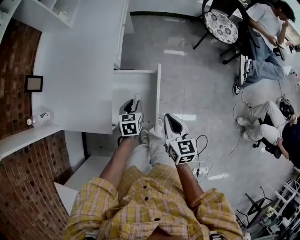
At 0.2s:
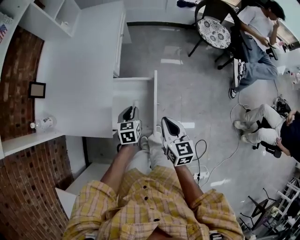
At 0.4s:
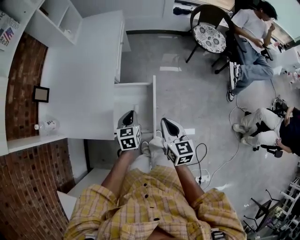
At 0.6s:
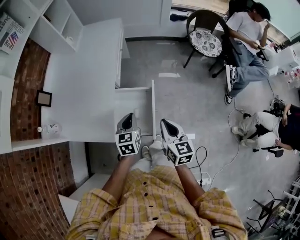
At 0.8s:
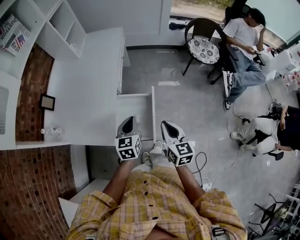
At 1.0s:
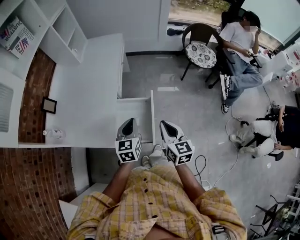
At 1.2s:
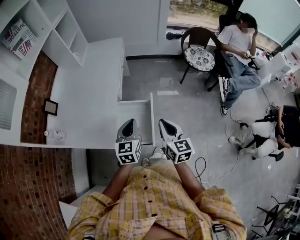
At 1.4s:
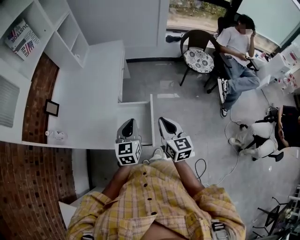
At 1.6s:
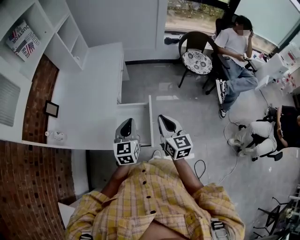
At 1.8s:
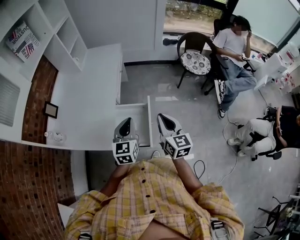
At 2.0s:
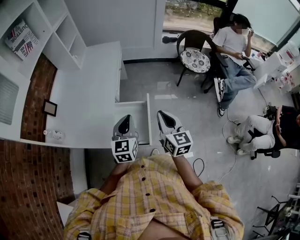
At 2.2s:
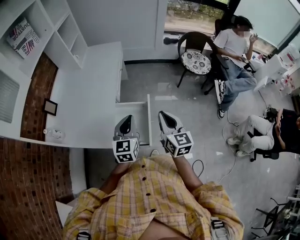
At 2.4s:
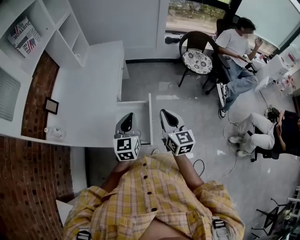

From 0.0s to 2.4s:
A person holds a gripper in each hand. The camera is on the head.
From 0.0s to 1.2s: The left gripper heads upward, covering roughly 25 cm, changes its angle by some 30 degrees, and closes up. The right gripper travels upward by about 15 cm.
From 1.2s to 2.4s: The left gripper travels upward by about 5 cm. Meanwhile the right gripper ends up about 5 cm from where it was.

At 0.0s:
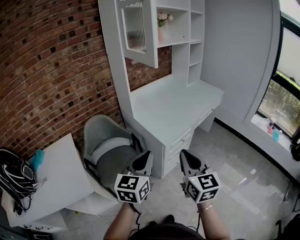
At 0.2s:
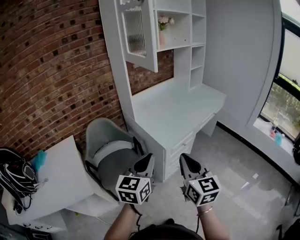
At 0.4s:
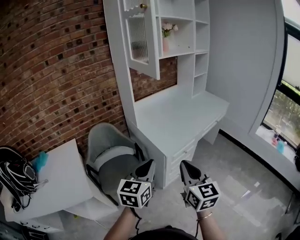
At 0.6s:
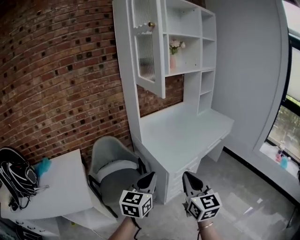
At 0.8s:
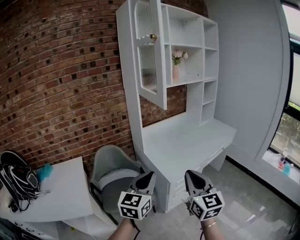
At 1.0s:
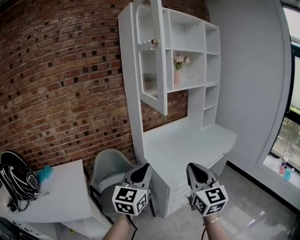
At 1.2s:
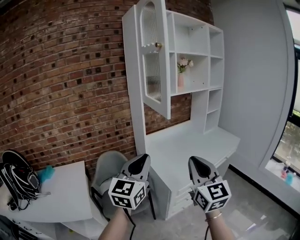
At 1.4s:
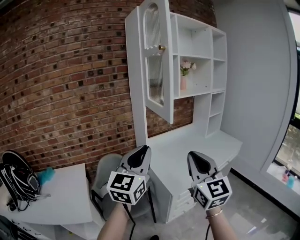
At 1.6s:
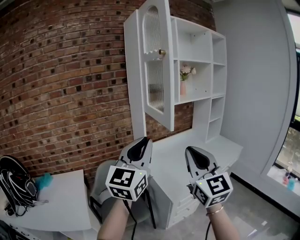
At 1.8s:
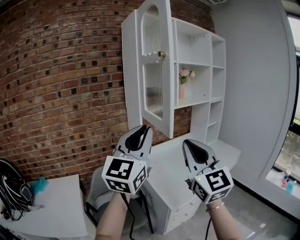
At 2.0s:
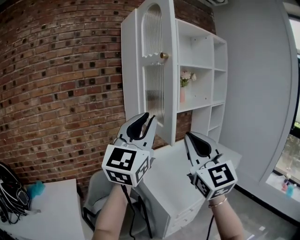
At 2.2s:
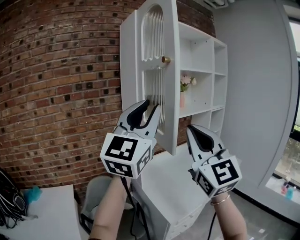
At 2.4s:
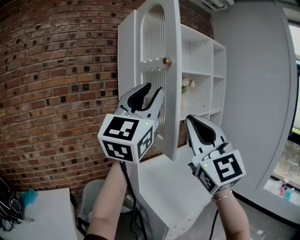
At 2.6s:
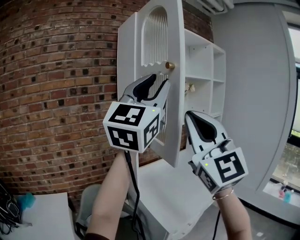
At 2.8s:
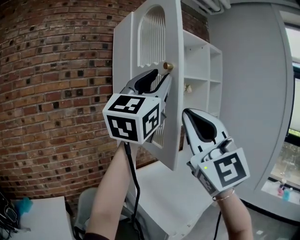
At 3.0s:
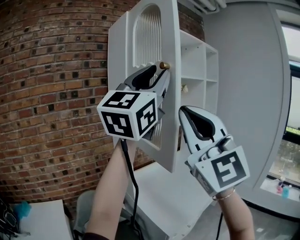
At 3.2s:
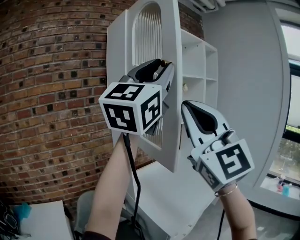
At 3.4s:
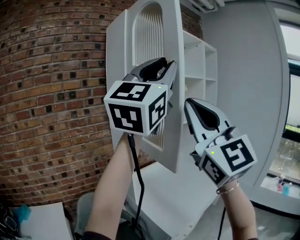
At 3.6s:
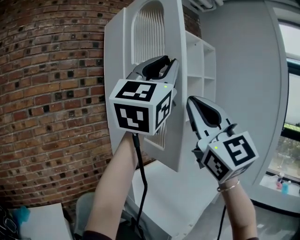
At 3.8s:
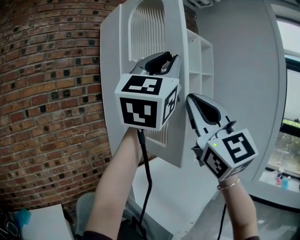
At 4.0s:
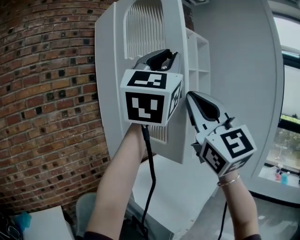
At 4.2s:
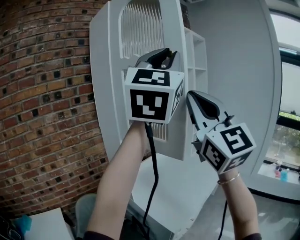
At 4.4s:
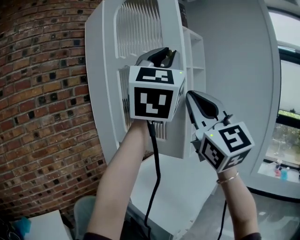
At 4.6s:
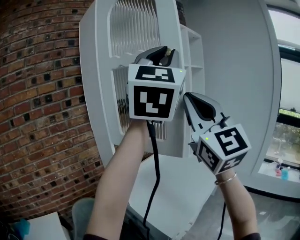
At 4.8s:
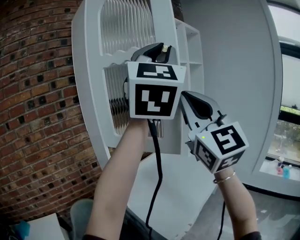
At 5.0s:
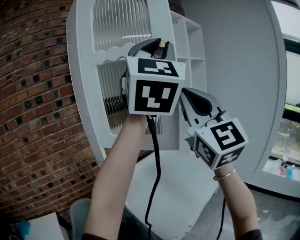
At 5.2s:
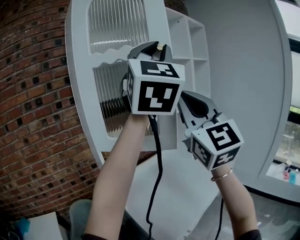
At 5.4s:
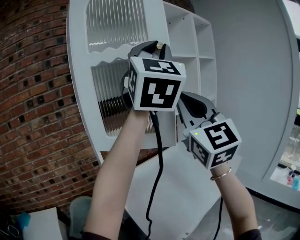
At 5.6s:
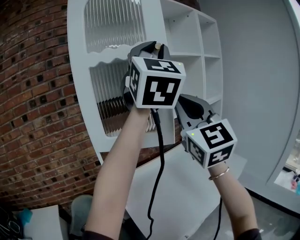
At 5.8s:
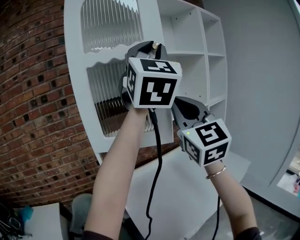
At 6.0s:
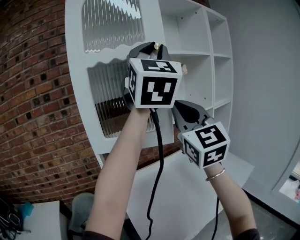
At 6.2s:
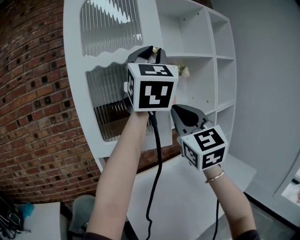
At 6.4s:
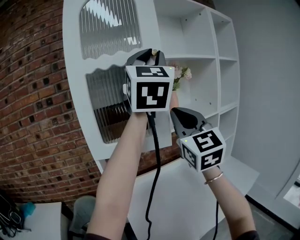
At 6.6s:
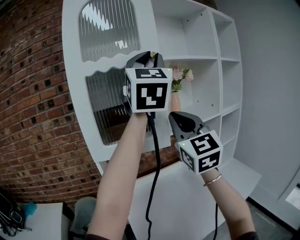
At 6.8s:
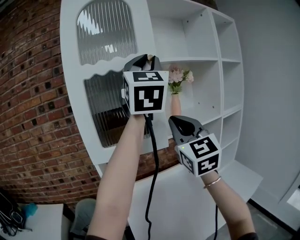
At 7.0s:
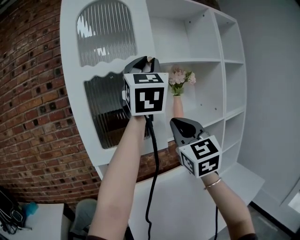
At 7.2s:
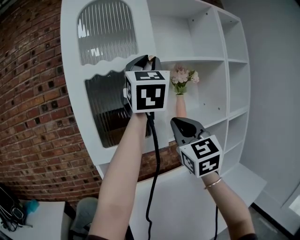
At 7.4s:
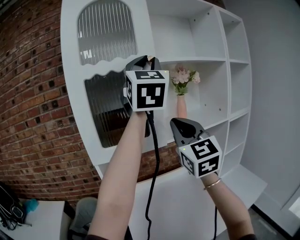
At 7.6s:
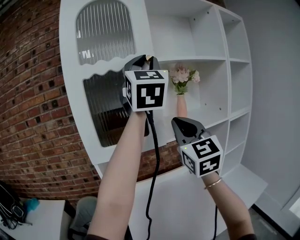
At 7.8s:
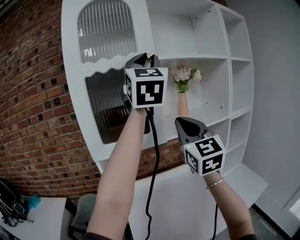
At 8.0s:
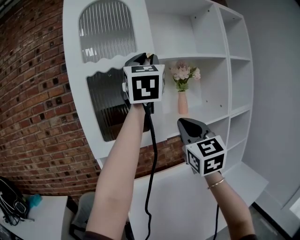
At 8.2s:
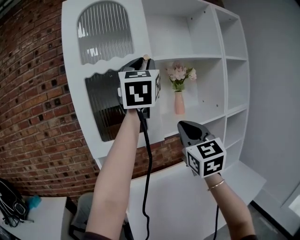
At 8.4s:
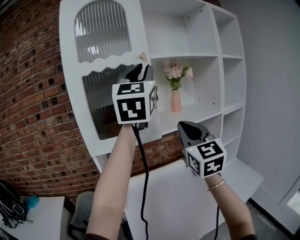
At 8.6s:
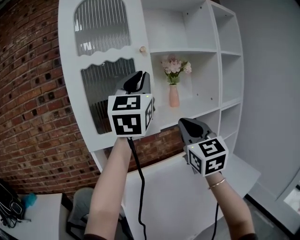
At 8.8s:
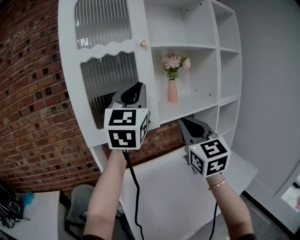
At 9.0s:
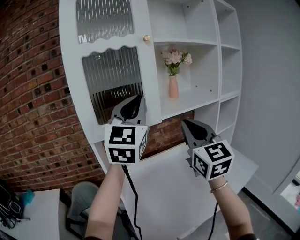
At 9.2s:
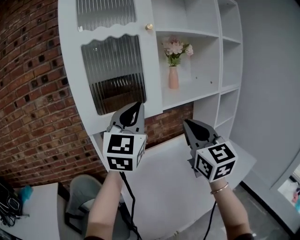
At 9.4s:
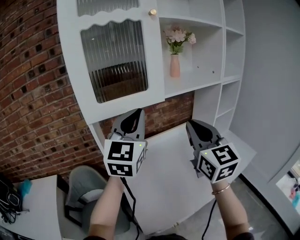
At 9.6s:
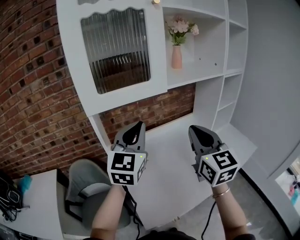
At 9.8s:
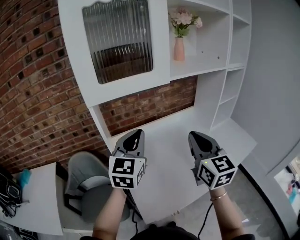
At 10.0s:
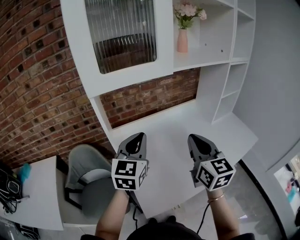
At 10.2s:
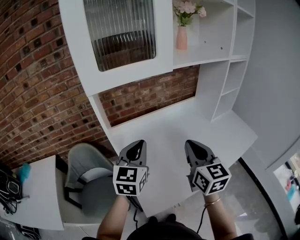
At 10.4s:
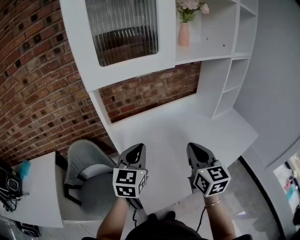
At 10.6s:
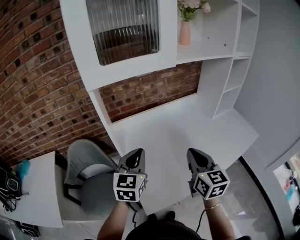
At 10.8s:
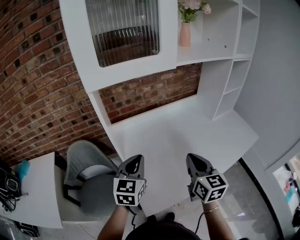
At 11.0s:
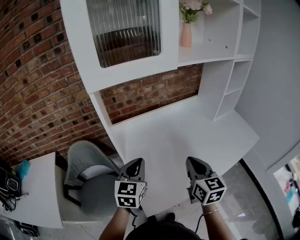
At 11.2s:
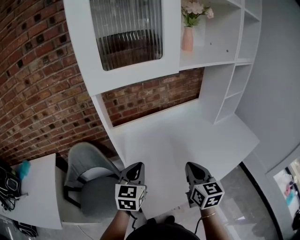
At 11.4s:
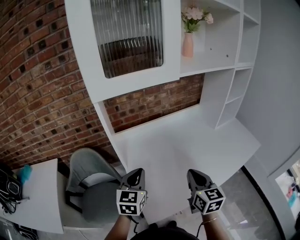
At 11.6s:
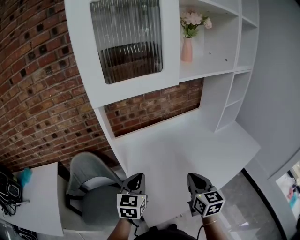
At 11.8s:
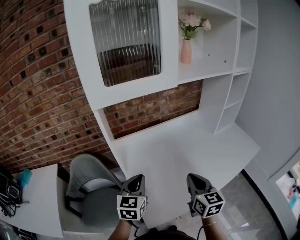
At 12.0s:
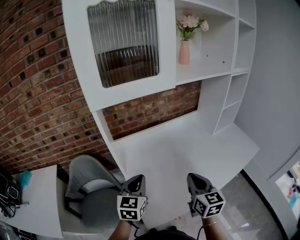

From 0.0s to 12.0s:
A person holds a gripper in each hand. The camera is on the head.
From 0.0s to 1.6s: The grippers both shift upward and forward by about 25 cm. The left gripper turns by roughly 30 degrees; the right gripper changes its angle by about 30 degrees.
From 1.6s to 3.0s: The grippers both shift upward and forward by roughly 25 cm. The left gripper changes its angle by some 30 degrees, and opens its fingers; the right gripper turns by some 30 degrees.
From 3.0s to 4.4s: The right gripper heads forward and to the right, covering about 10 cm. Meanwhile the left gripper travels to the right and forward by some 10 cm.
From 4.4s to 6.0s: Both grippers travel together forward, about 25 cm. The left gripper swivels about 30 degrees.
From 6.0s to 7.6s: The grippers both shift forward by about 10 cm.
From 7.6s to 9.0s: The left gripper heads downward, covering roughly 20 cm. Meanwhile the right gripper shifts approximately 10 cm downward and backward.
From 9.0s to 10.4s: The grippers both shift downward by some 30 cm. The right gripper rotates approximately 30 degrees. The left gripper tilts its fingers approximately 30 degrees downward.
From 10.4s to 12.0s: The grippers both shift downward by some 10 cm.

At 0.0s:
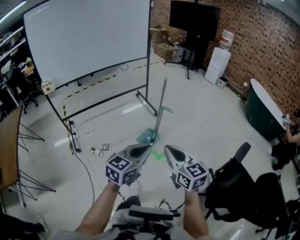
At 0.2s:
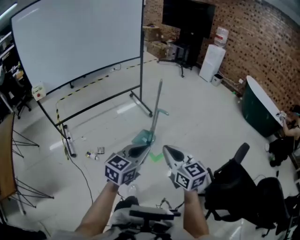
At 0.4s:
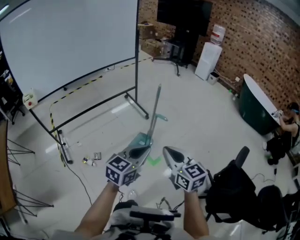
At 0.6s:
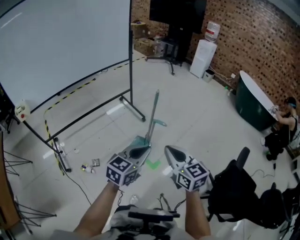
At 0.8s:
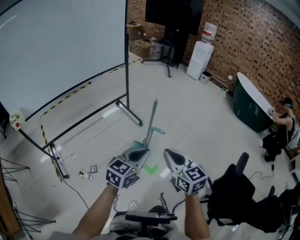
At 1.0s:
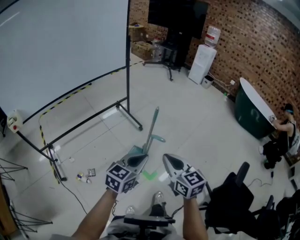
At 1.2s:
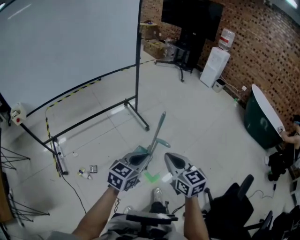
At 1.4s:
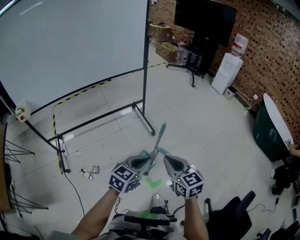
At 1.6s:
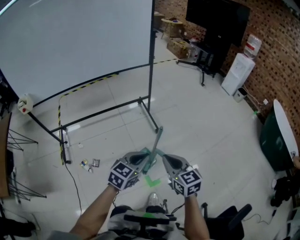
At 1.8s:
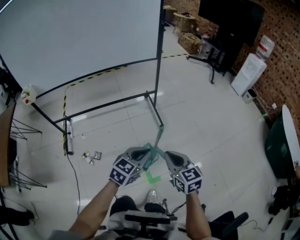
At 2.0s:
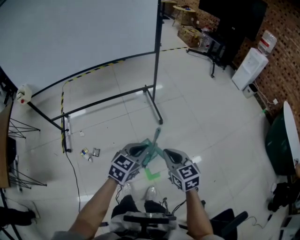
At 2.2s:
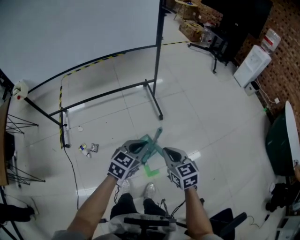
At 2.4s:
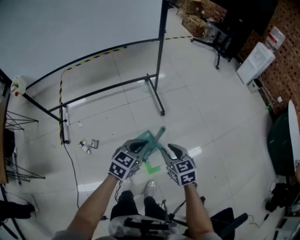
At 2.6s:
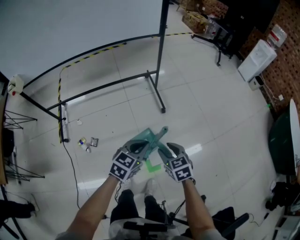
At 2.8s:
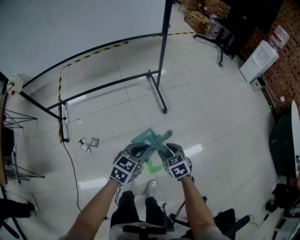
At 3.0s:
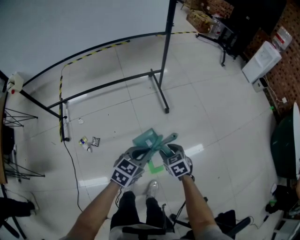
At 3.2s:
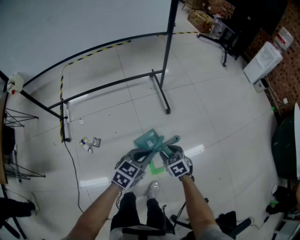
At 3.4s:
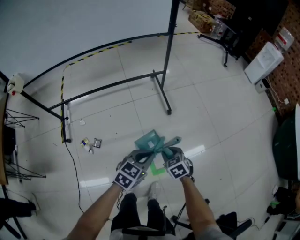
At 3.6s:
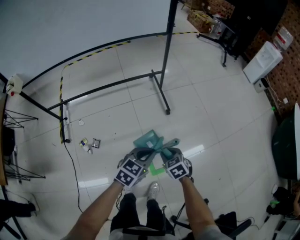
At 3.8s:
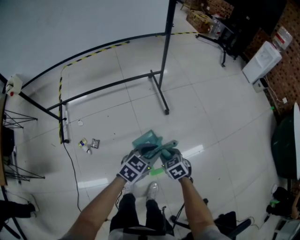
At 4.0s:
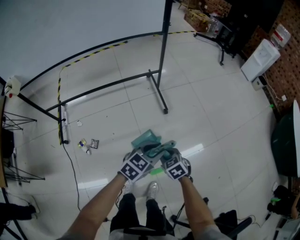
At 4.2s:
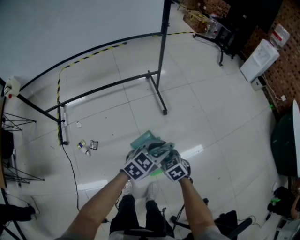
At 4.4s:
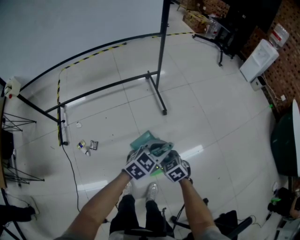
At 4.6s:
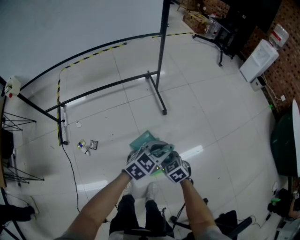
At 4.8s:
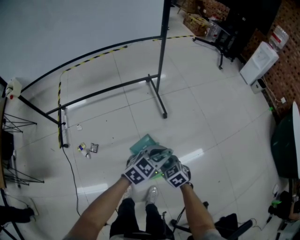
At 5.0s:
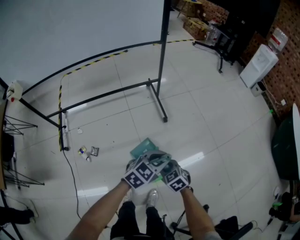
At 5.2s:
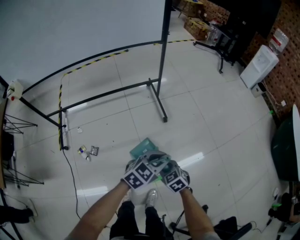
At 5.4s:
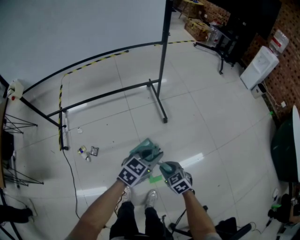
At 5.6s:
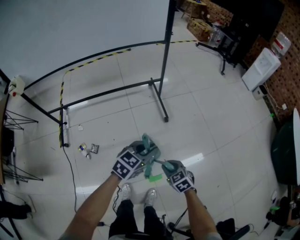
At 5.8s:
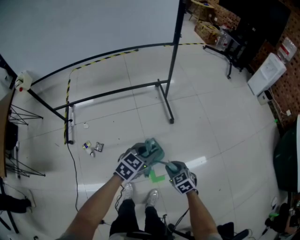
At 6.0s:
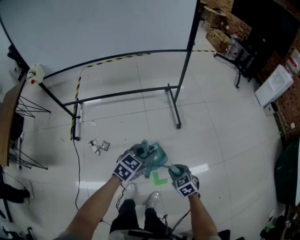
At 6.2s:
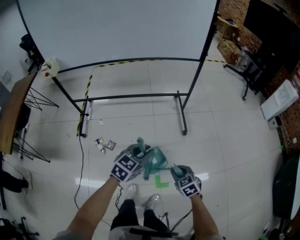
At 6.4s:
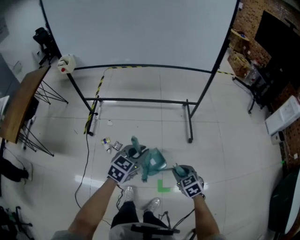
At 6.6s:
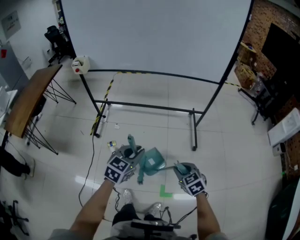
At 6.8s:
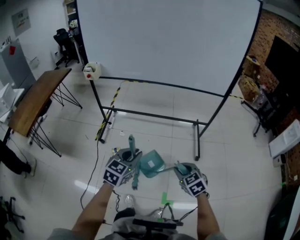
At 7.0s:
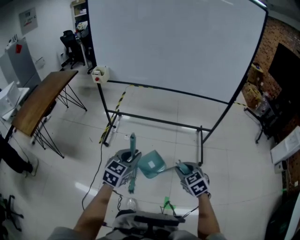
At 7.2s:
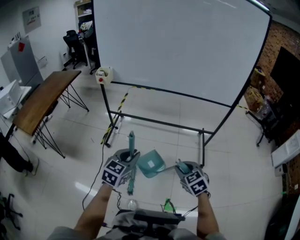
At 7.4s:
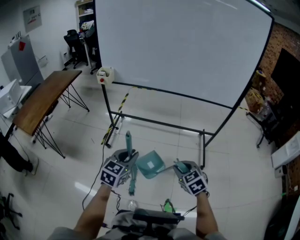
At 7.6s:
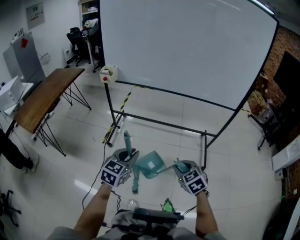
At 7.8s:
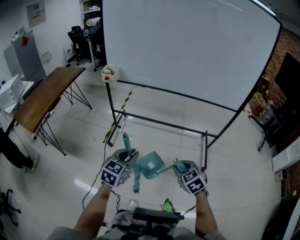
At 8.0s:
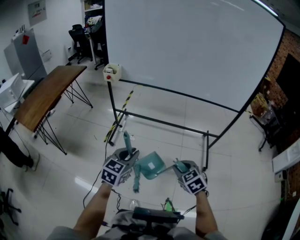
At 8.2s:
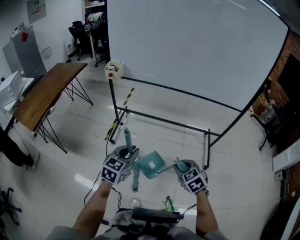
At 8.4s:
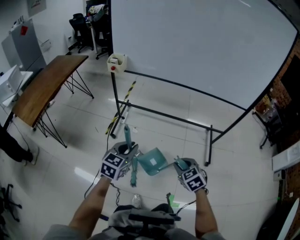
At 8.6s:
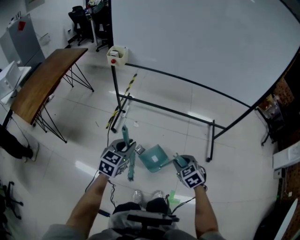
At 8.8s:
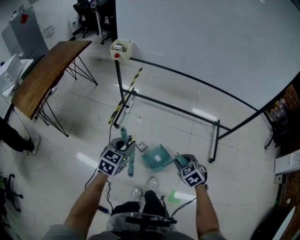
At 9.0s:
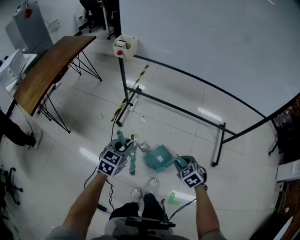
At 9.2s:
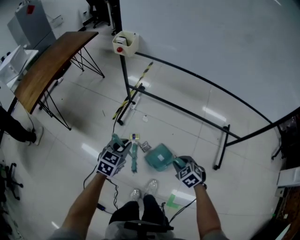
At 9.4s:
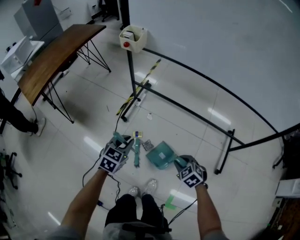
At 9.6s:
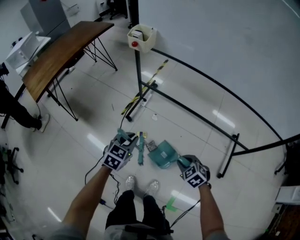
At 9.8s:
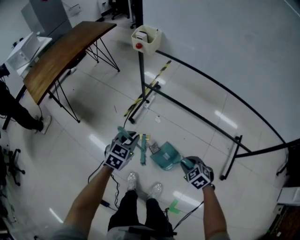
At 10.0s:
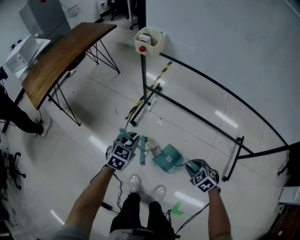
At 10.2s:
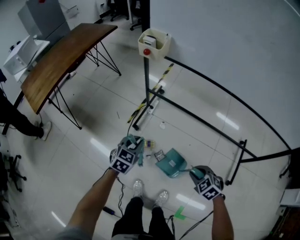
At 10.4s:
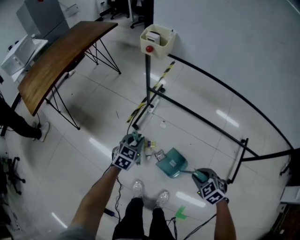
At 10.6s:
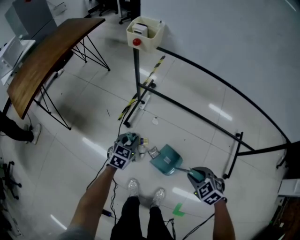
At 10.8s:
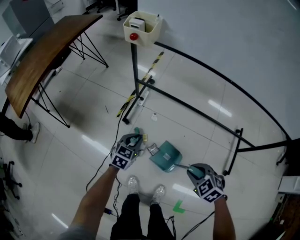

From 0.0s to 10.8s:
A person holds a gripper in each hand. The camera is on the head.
From 0.0s to 1.6s: The grippers both shift forward by roughly 40 cm.
From 1.6s to 3.0s: The right gripper travels downward and forward by about 25 cm, tips its fingers downward by roughly 30 degrees, and opens up; the left gripper heads downward and forward, covering about 15 cm.
From 3.0s to 4.6s: The left gripper goes about 10 cm to the right.
From 4.6s to 6.2s: The right gripper shifts by about 5 cm; the left gripper heads to the left, covering about 20 cm, and rotates about 30 degrees.
From 6.2s to 7.8s: The left gripper moves to the left, approximately 30 cm, and rotates about 30 degrees, while the right gripper travels to the left, upward and forward by roughly 30 cm, and turns by about 20 degrees.
From 7.8s to 9.2s: The left gripper is displaced downward, forward and to the left by some 25 cm, while the right gripper shifts roughly 25 cm downward and forward, and turns by about 20 degrees.
From 9.2s to 10.8s: The left gripper goes some 20 cm downward and forward. Meanwhile the right gripper travels forward by some 5 cm.
